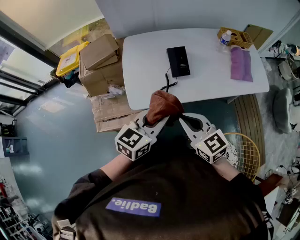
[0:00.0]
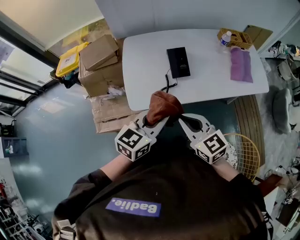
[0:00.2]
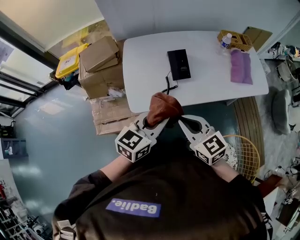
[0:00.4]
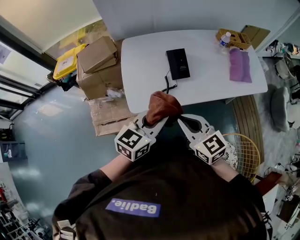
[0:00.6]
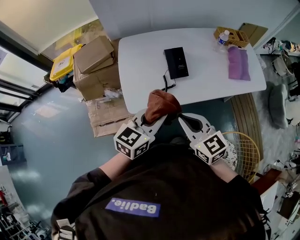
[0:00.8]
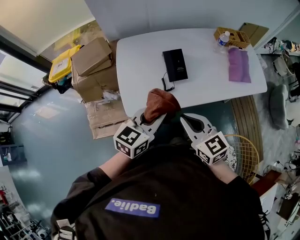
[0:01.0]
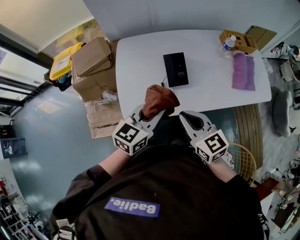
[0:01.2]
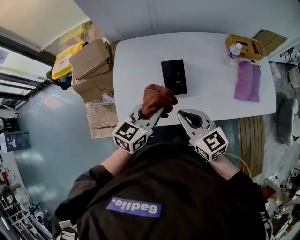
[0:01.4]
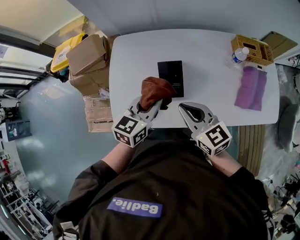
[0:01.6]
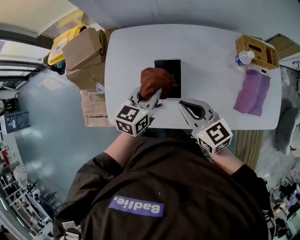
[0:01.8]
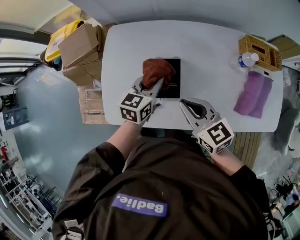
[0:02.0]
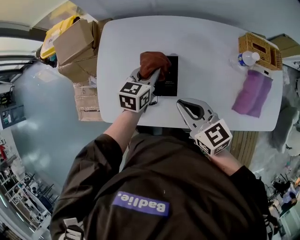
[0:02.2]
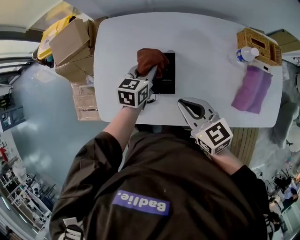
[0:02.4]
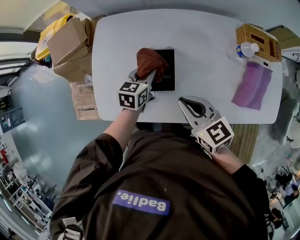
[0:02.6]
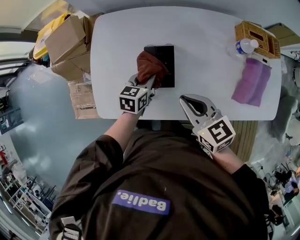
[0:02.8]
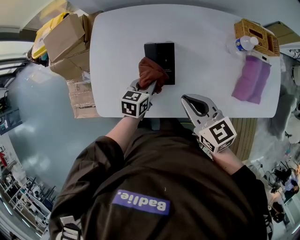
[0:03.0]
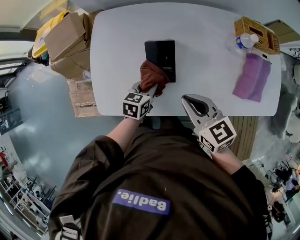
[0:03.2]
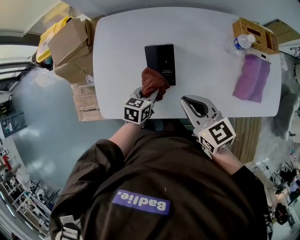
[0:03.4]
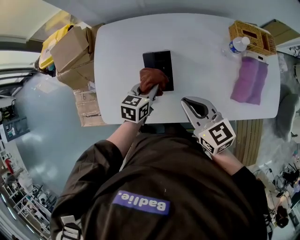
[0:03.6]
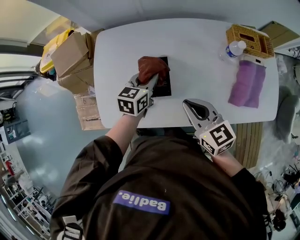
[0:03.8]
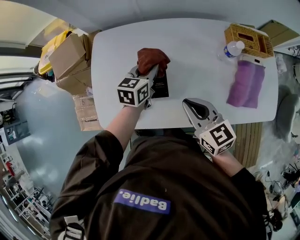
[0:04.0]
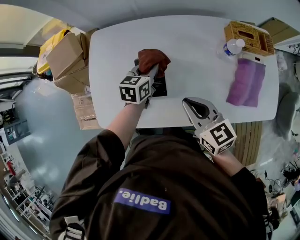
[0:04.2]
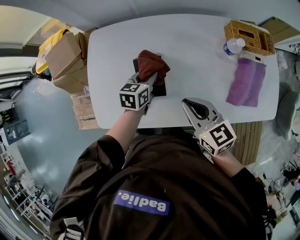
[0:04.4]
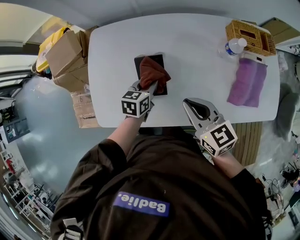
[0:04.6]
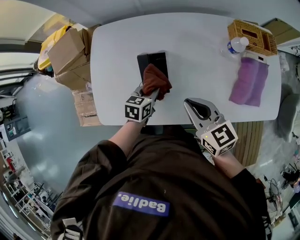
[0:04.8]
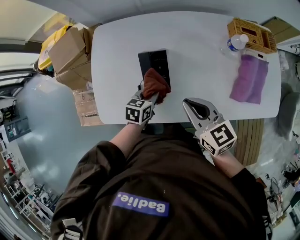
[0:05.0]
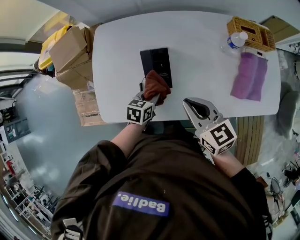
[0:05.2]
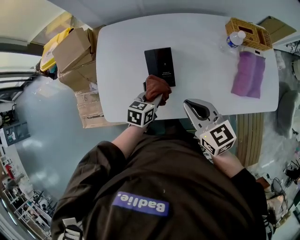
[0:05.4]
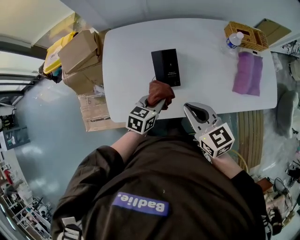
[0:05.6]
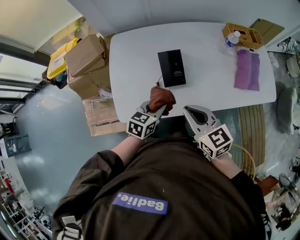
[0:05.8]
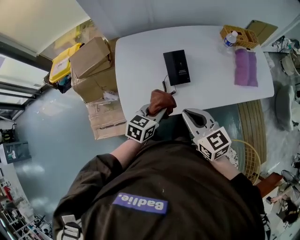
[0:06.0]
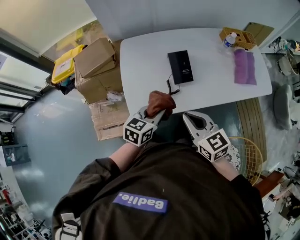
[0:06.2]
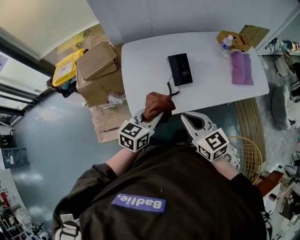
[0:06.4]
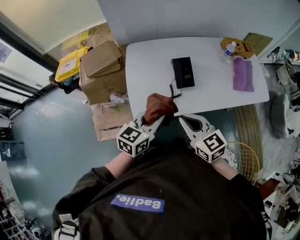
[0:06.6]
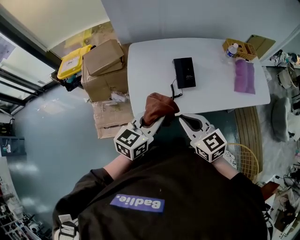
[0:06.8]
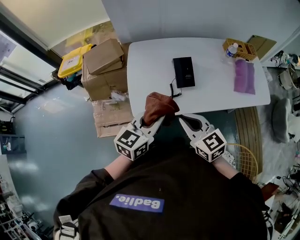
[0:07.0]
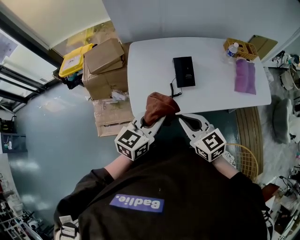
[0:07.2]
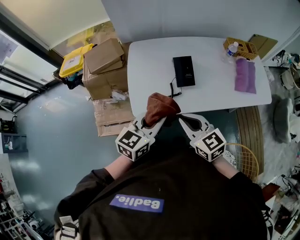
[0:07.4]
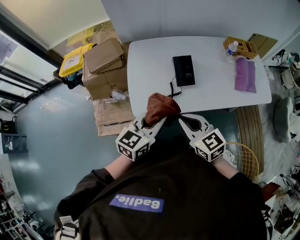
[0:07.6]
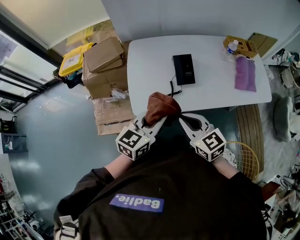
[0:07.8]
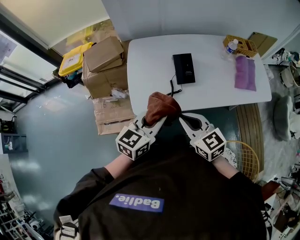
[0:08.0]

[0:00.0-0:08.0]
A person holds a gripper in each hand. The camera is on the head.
0:00.0 to 0:01.6: Both grippers move forward, some 25 cm.
0:01.6 to 0:03.2: The left gripper goes roughly 20 cm downward, and changes its angle by some 20 degrees. Meanwhile the right gripper goes roughly 5 cm downward.
0:03.2 to 0:04.8: The left gripper reaches roughly 15 cm forward, then returns.
0:04.8 to 0:06.4: The right gripper heads backward and to the left, covering approximately 25 cm, while the left gripper goes approximately 30 cm backward, upward and to the left, and rotates roughly 30 degrees.
0:06.4 to 0:08.0: The left gripper shifts some 5 cm upward.

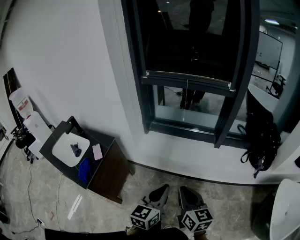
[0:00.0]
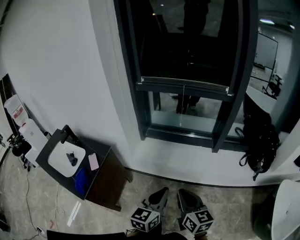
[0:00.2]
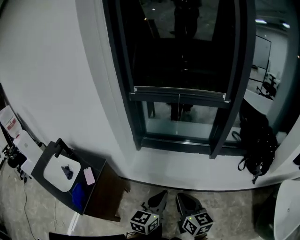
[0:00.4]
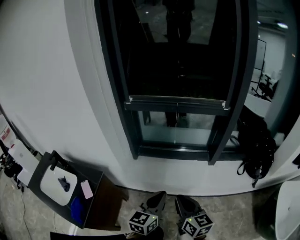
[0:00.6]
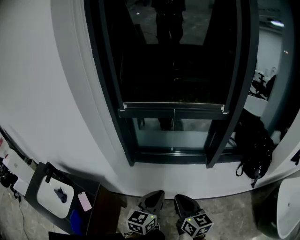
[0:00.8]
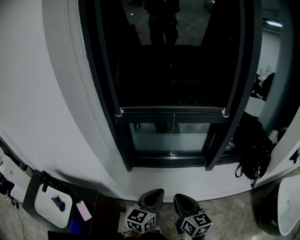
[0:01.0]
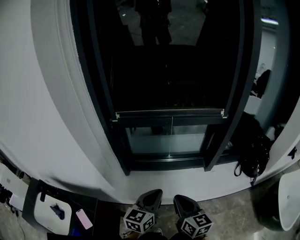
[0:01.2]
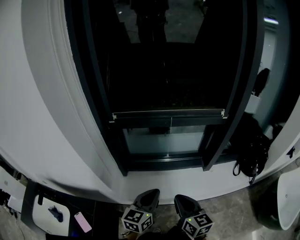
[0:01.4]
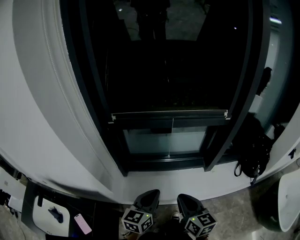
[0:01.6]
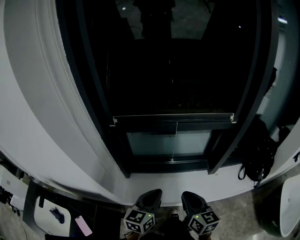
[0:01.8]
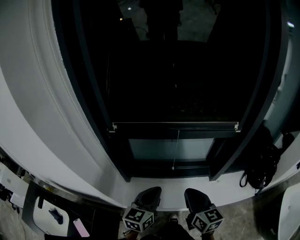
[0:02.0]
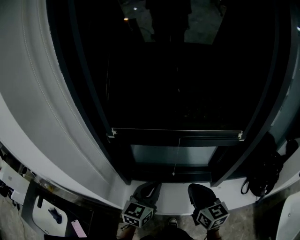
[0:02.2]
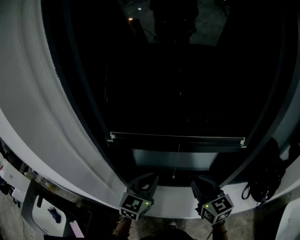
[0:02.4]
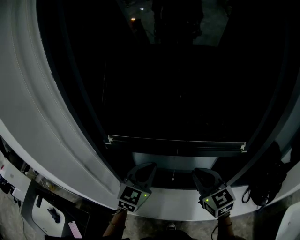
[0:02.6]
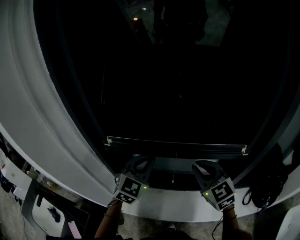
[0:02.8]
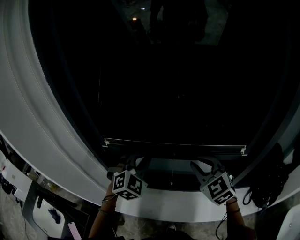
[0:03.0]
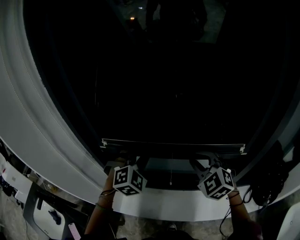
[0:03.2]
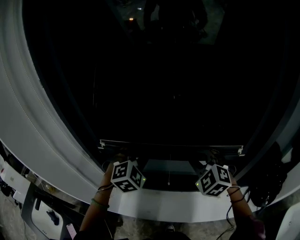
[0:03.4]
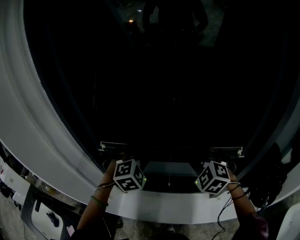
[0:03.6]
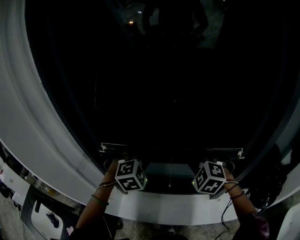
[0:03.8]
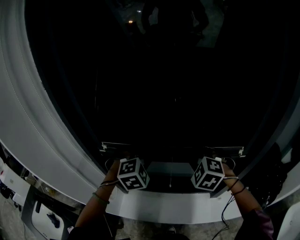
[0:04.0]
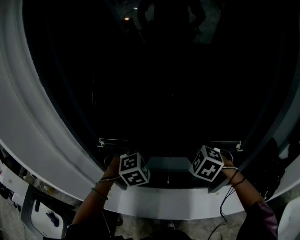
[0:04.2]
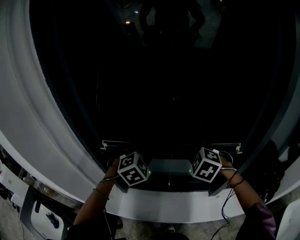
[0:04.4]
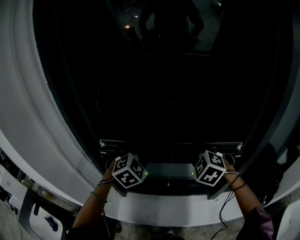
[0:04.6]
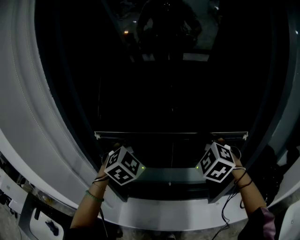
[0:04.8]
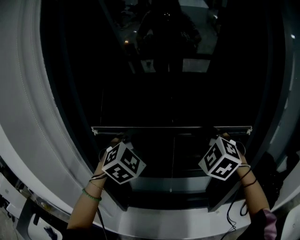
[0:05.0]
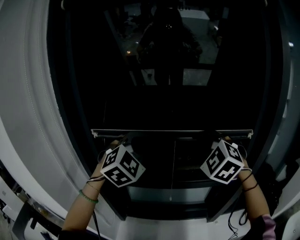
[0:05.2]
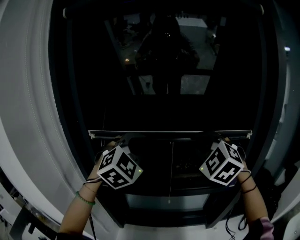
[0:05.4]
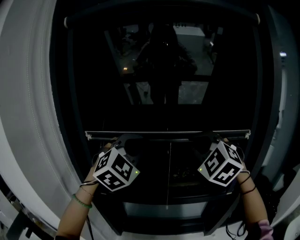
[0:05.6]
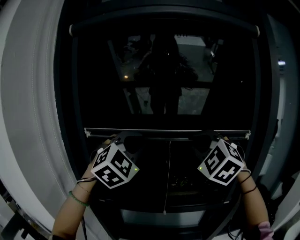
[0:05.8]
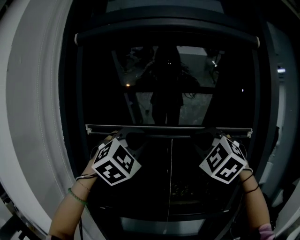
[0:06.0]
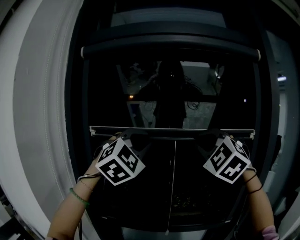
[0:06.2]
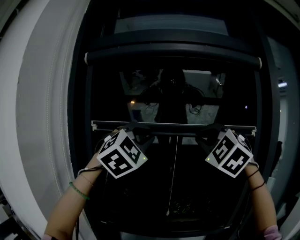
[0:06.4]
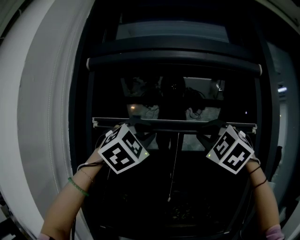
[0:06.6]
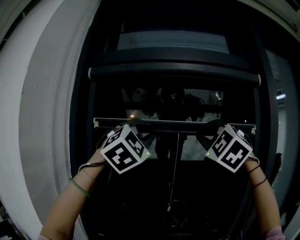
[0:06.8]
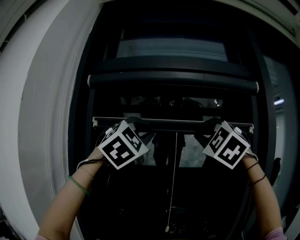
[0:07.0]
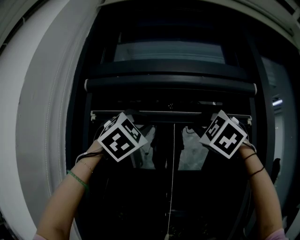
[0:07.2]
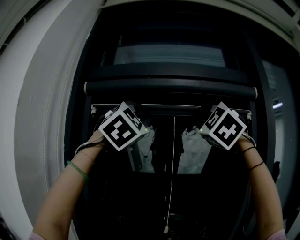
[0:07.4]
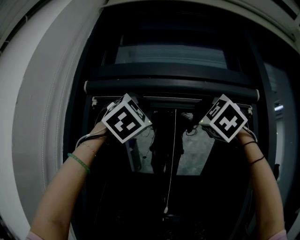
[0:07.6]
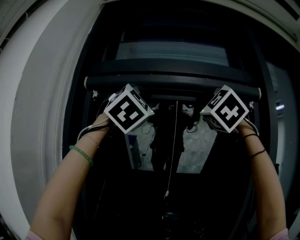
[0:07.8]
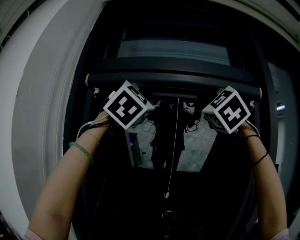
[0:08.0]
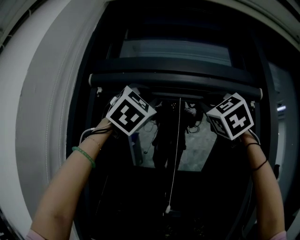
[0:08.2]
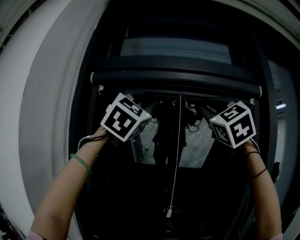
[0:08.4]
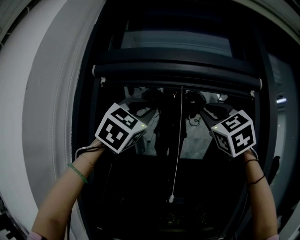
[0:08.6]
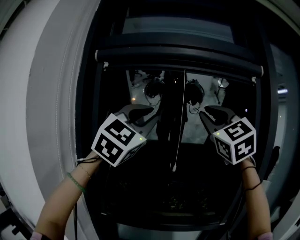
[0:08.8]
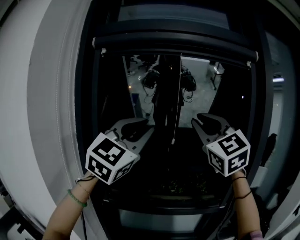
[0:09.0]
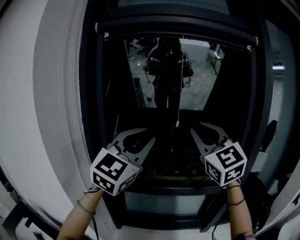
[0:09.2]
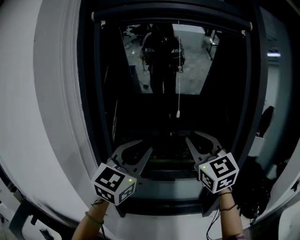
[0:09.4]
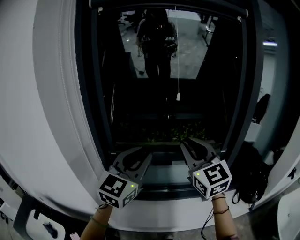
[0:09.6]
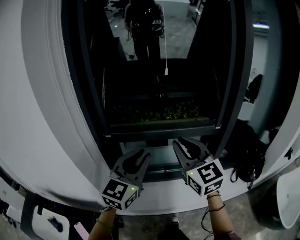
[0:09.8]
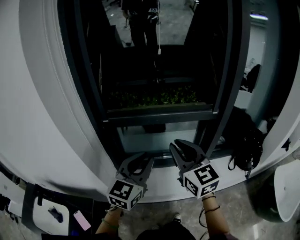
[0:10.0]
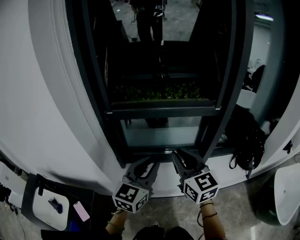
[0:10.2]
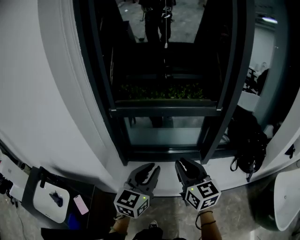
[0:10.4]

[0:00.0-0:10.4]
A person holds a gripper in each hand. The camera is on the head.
0:00.0 to 0:01.4: The grippers both shift forward by about 30 cm.
0:01.4 to 0:03.0: Both grippers travel together forward, about 35 cm. The left gripper rolls clockwise, seen from behind, by about 60 degrees, while the right gripper twists approximately 50 degrees counterclockwise, seen from behind.
0:03.0 to 0:04.4: The right gripper changes its angle by some 30 degrees.
0:04.4 to 0:06.0: The two grippers go roughly 40 cm upward. The left gripper angles its fingers upward, by roughly 40 degrees. Meanwhile the right gripper angles its fingers upward, by about 40 degrees.
0:06.0 to 0:07.4: Both grippers travel together upward, some 25 cm.
0:07.4 to 0:09.0: Both grippers travel together downward and backward, approximately 20 cm. The right gripper changes its angle by some 30 degrees; the left gripper swivels some 30 degrees.
0:09.0 to 0:10.4: The two grippers go roughly 50 cm downward and backward. The left gripper rotates around the line of its fingers by some 40 degrees, counterclockwise from behind. Meanwhile the right gripper rotates around the line of its fingers by approximately 40 degrees, clockwise from behind.

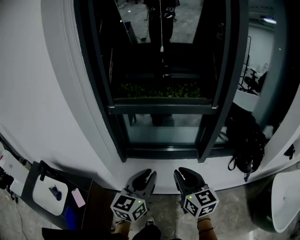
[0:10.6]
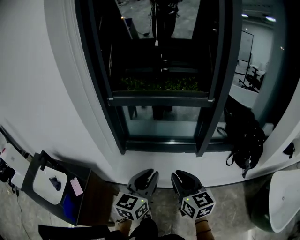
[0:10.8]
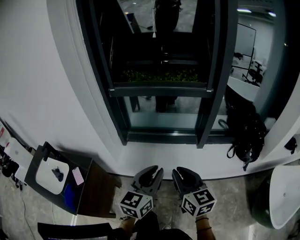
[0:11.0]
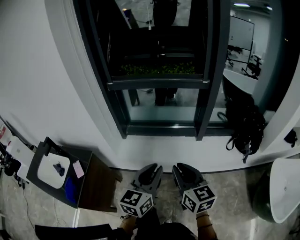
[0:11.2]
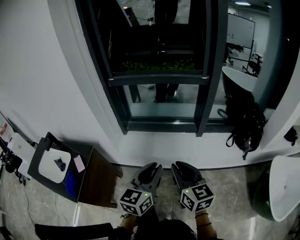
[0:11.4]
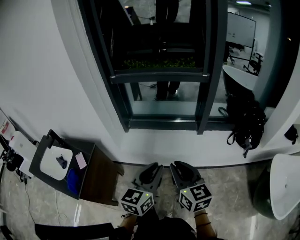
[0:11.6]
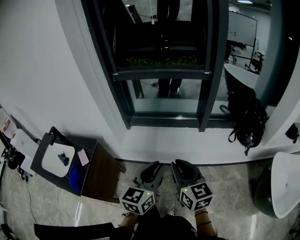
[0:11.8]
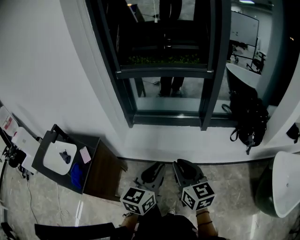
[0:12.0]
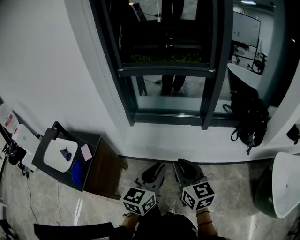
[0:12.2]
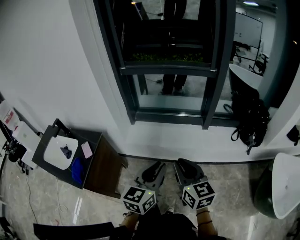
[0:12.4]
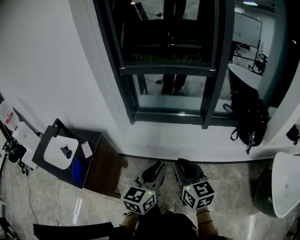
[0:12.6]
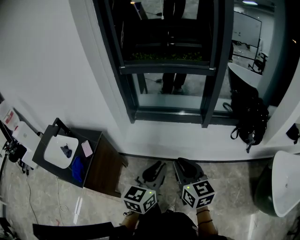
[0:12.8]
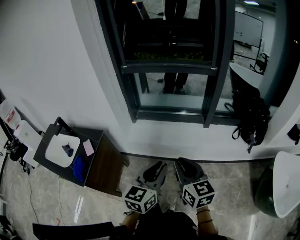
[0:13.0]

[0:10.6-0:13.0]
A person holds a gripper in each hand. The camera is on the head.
0:10.6 to 0:11.8: The two grippers go roughly 20 cm backward.
0:11.8 to 0:13.0: The left gripper changes place by some 5 cm.

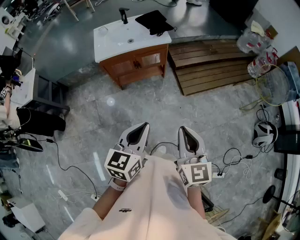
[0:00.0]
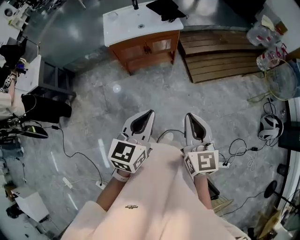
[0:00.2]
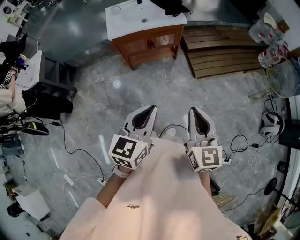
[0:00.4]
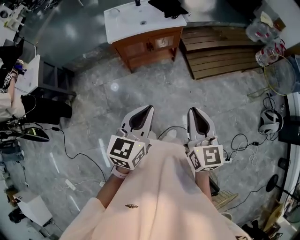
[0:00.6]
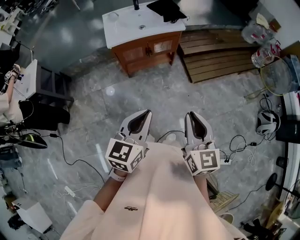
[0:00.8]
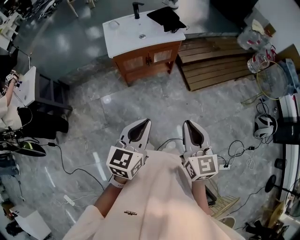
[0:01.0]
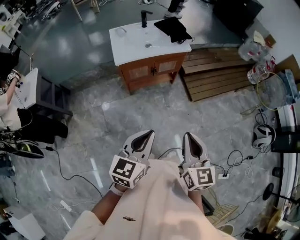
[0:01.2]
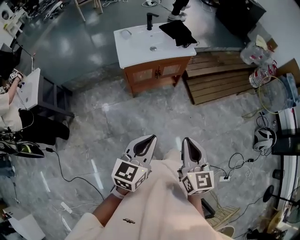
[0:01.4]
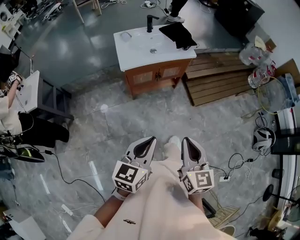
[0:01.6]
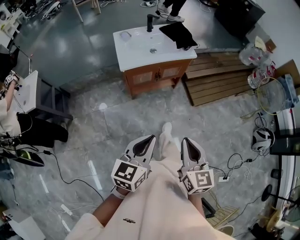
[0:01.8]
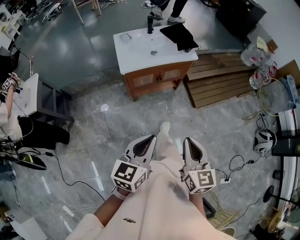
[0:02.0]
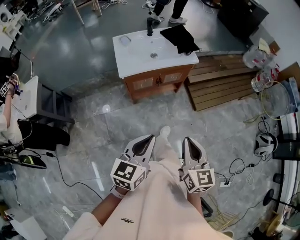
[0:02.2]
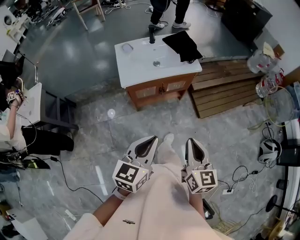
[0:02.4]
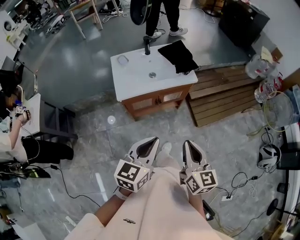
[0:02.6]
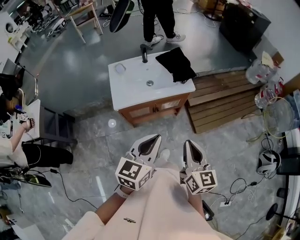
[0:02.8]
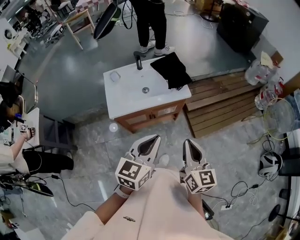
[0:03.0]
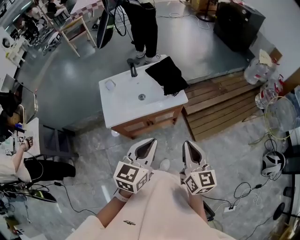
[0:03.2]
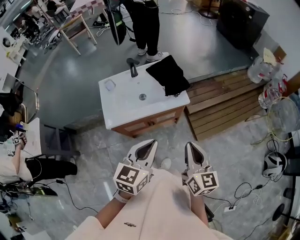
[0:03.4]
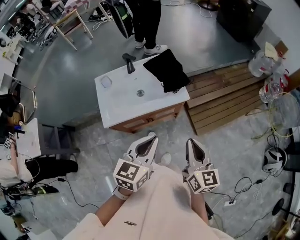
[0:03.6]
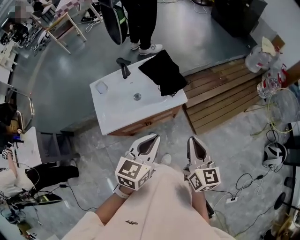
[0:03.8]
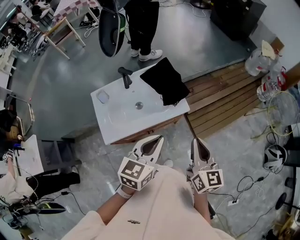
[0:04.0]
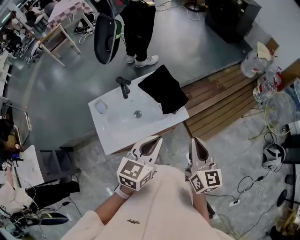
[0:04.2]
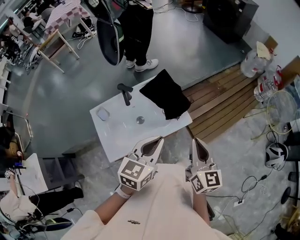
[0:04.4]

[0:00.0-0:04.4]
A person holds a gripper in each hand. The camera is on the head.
0:00.0 to 0:01.4: Both grippers move to the left, some 20 cm.
0:01.4 to 0:03.0: Both grippers travel together forward, approximately 30 cm.
0:03.0 to 0:04.4: Both grippers move forward, some 25 cm.
